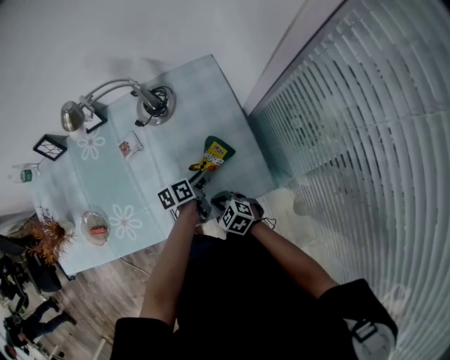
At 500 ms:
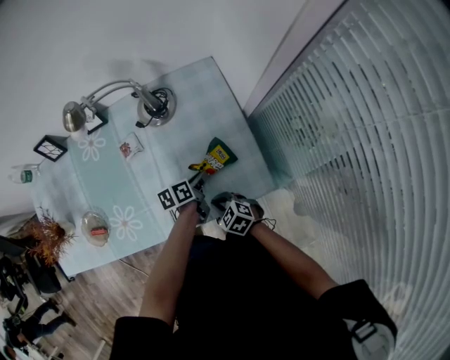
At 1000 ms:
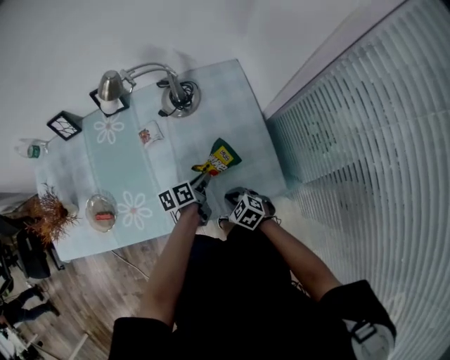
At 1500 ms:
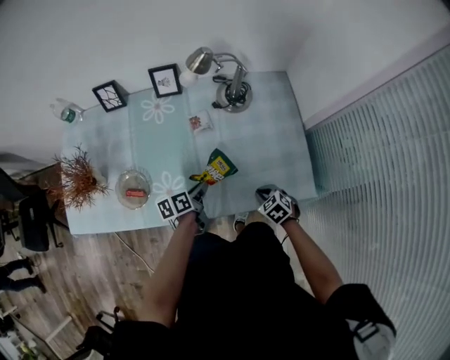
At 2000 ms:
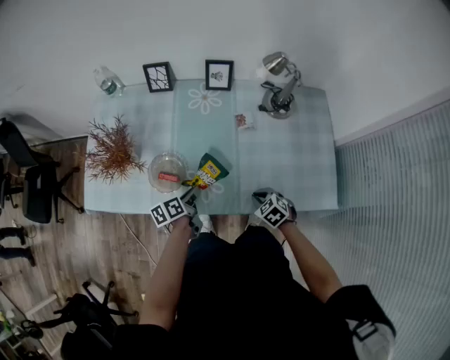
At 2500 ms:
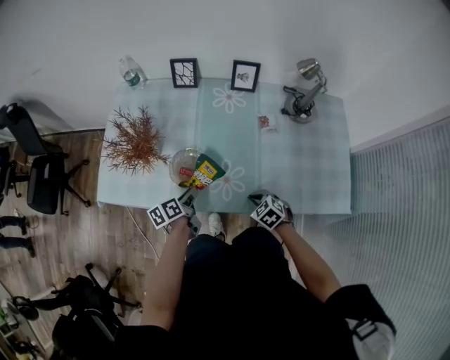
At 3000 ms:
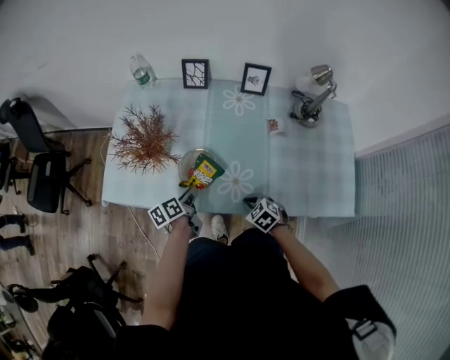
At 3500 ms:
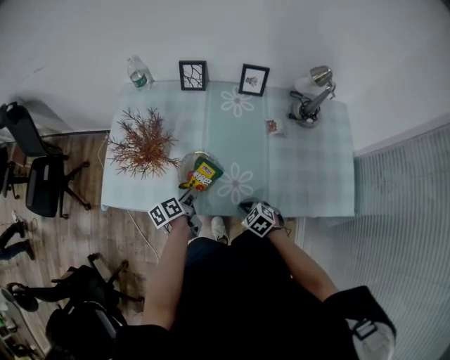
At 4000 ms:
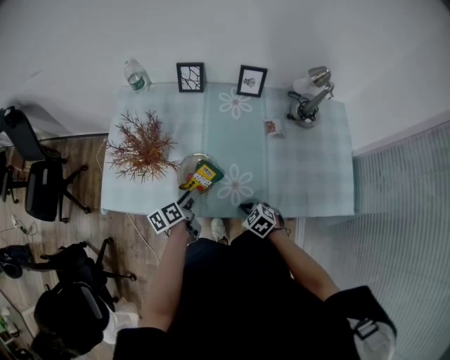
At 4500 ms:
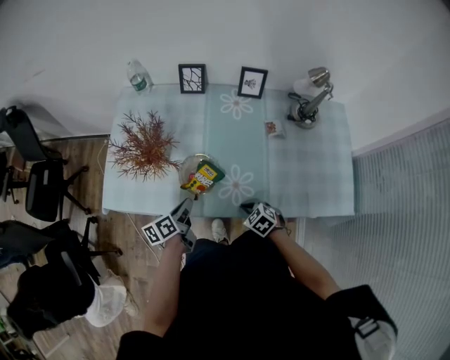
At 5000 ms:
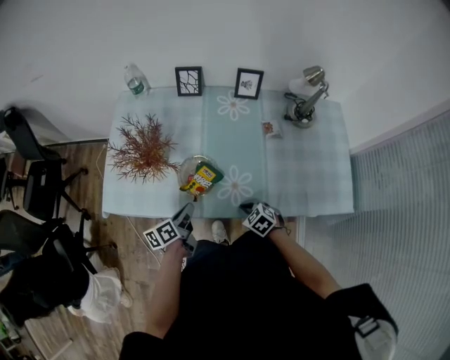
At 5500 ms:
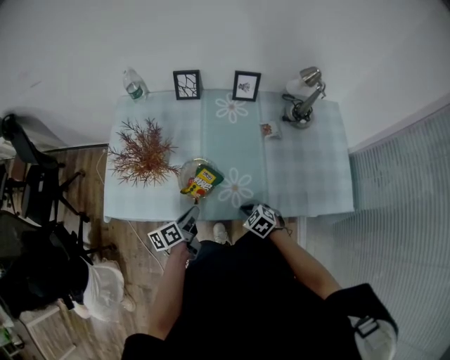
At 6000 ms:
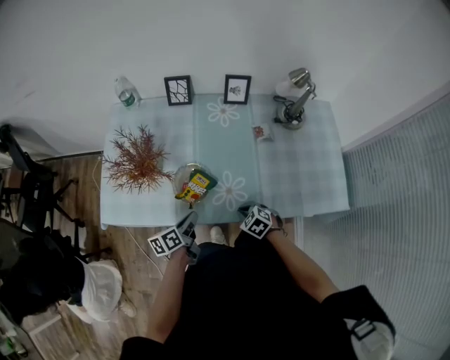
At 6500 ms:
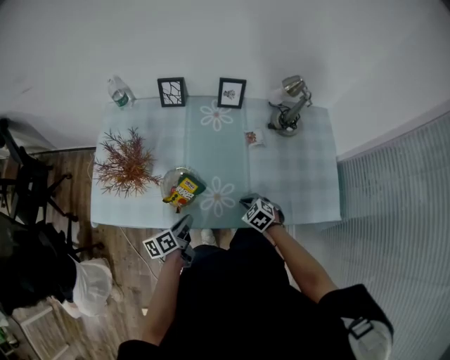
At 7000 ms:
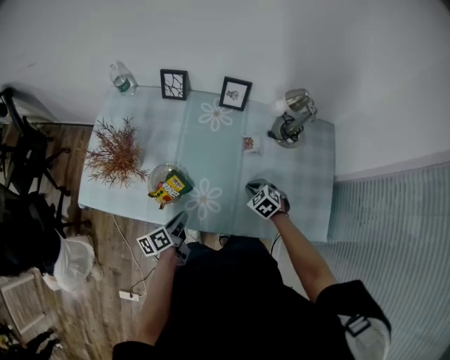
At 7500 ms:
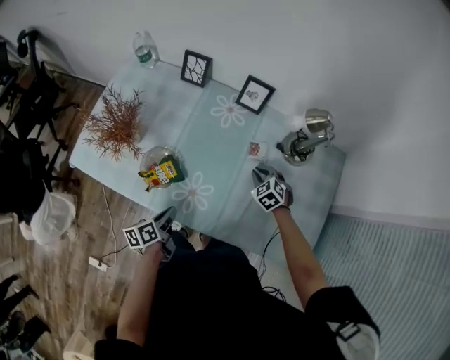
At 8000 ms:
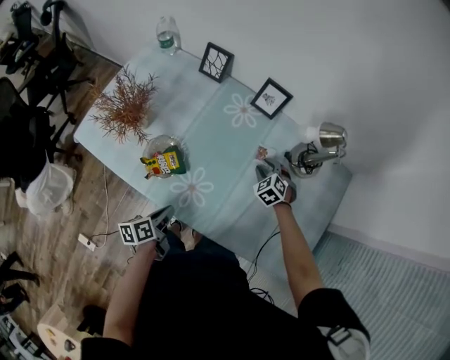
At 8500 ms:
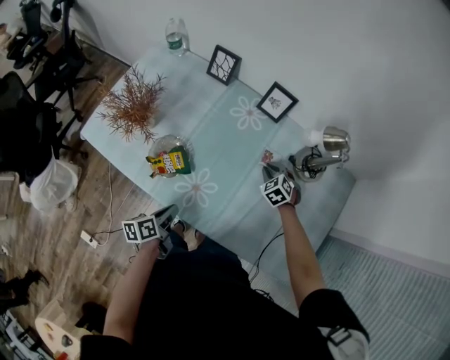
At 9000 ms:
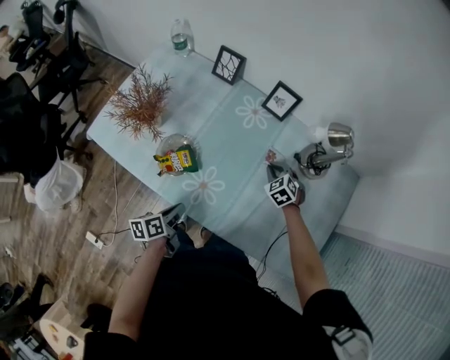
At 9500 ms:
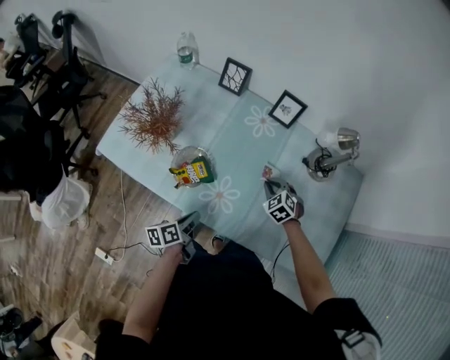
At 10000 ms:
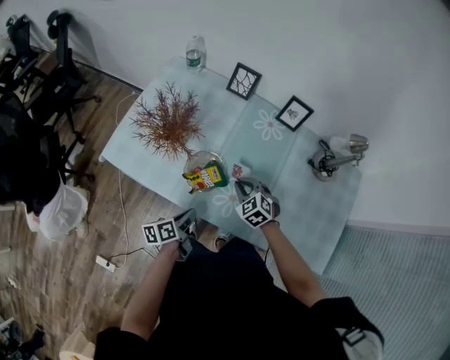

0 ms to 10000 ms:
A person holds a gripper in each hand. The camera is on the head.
0 ms to 2000 ms: The right gripper goes about 15 cm to the left, while the left gripper heads to the left, covering about 40 cm, changes its angle by about 30 degrees, and closes its fingers.
2000 ms to 4000 ms: Both grippers move to the left, approximately 15 cm. The left gripper opens its fingers.
4000 ms to 6000 ms: The left gripper goes approximately 5 cm backward, and closes up.
6000 ms to 8000 ms: The left gripper travels to the right by some 10 cm, and turns by about 20 degrees. Meanwhile the right gripper shifts roughly 30 cm forward and to the right, turns by roughly 30 degrees, and opens.
8000 ms to 10000 ms: The right gripper travels to the left and backward by approximately 25 cm, and closes up. Meanwhile the left gripper heads to the left, covering roughly 10 cm.

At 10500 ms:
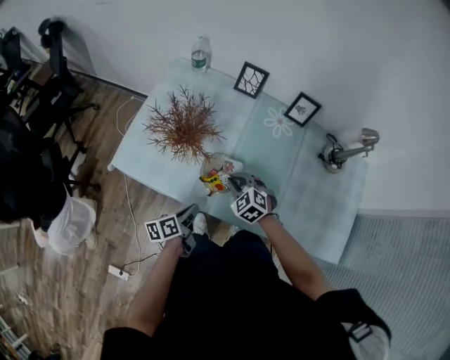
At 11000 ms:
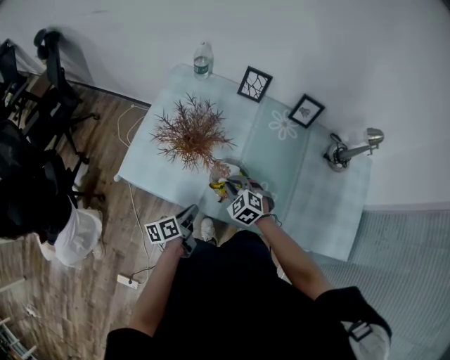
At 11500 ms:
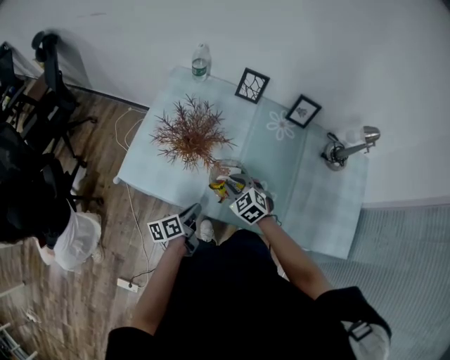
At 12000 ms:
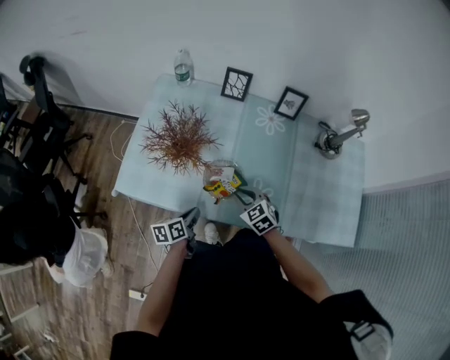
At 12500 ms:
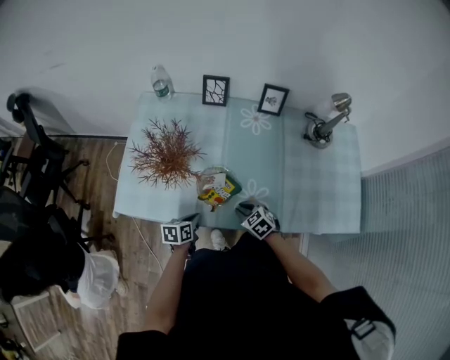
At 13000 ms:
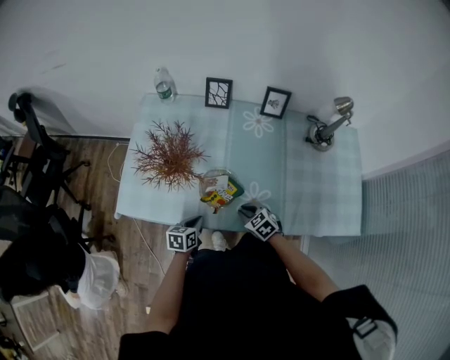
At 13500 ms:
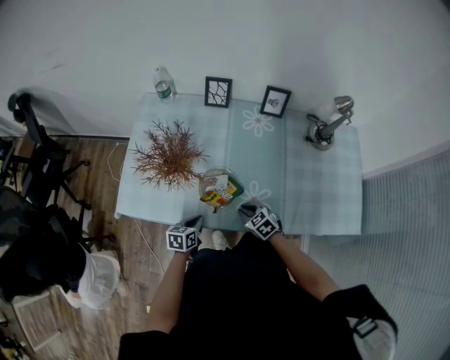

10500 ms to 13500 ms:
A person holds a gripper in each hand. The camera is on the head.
10500 ms to 12000 ms: The right gripper swivels approximately 20 degrees.
12000 ms to 13500 ms: The right gripper moves downward, roughly 5 cm. The left gripper swivels some 30 degrees.

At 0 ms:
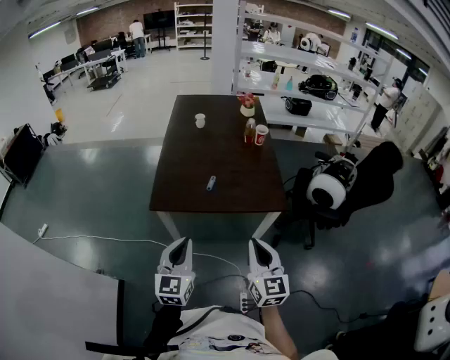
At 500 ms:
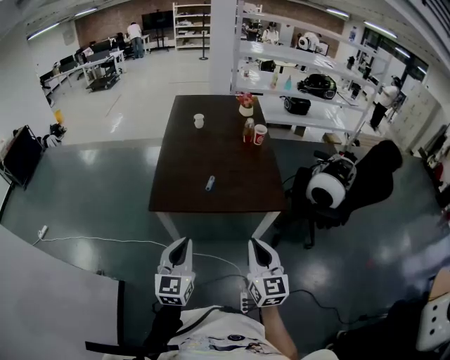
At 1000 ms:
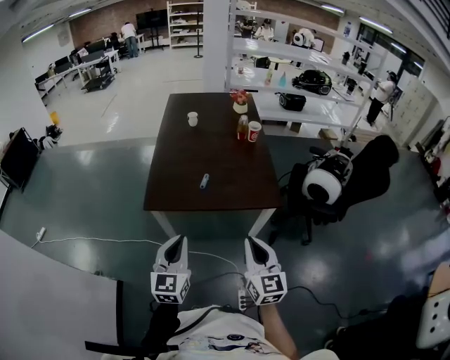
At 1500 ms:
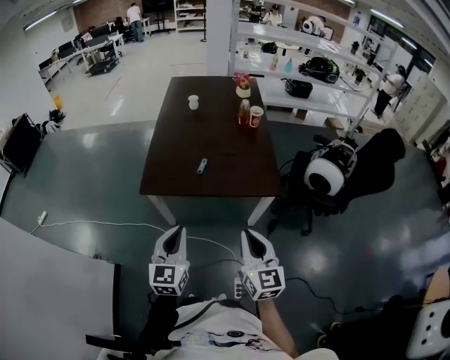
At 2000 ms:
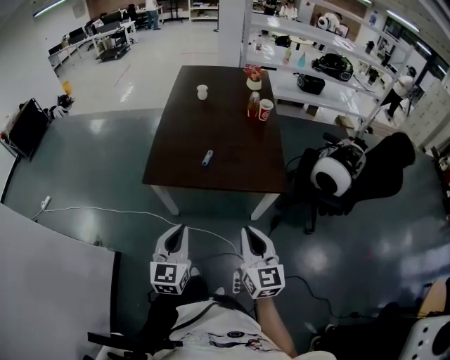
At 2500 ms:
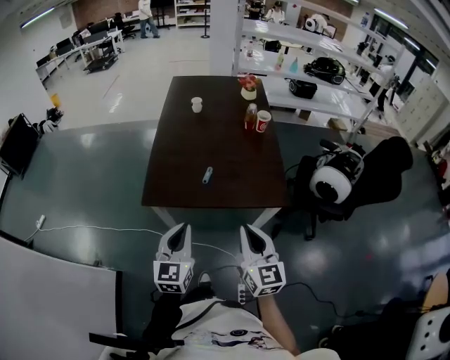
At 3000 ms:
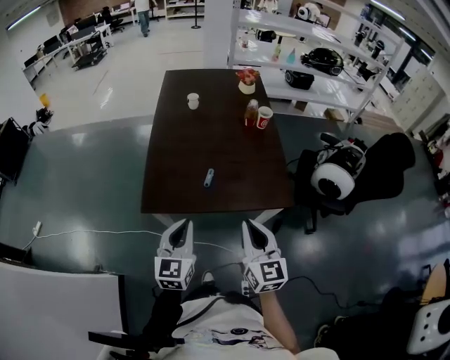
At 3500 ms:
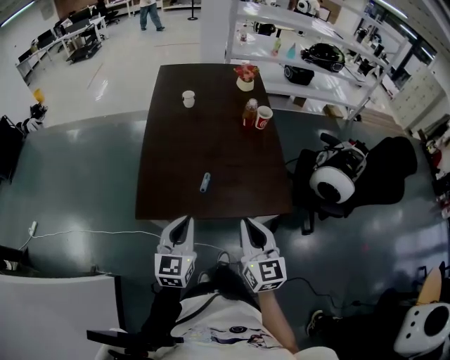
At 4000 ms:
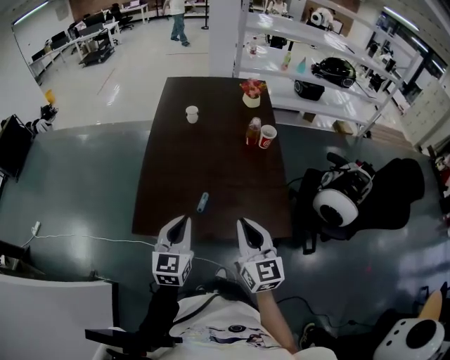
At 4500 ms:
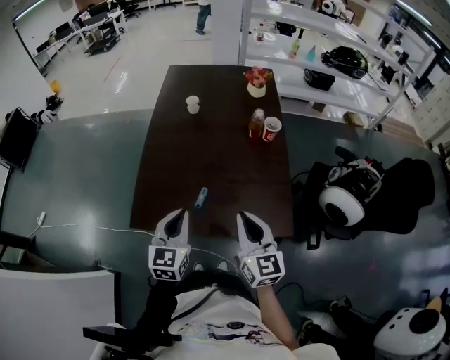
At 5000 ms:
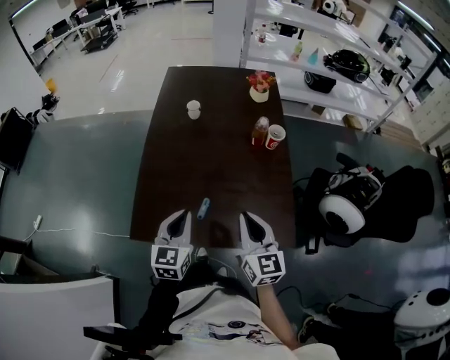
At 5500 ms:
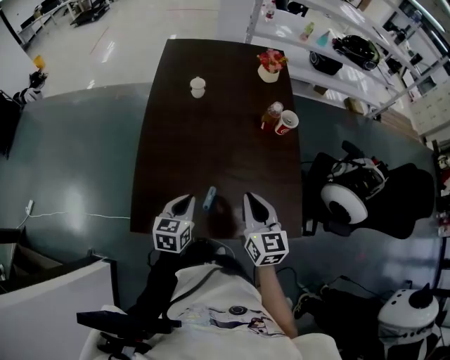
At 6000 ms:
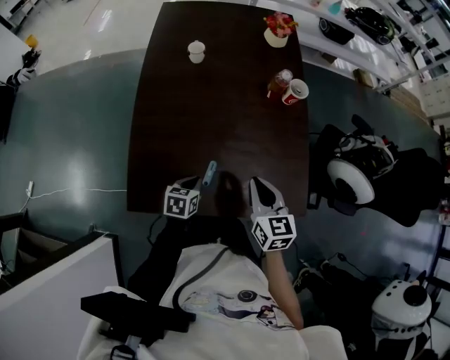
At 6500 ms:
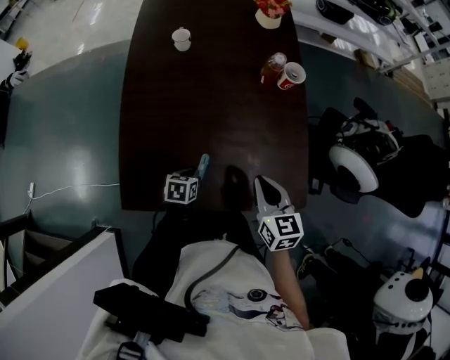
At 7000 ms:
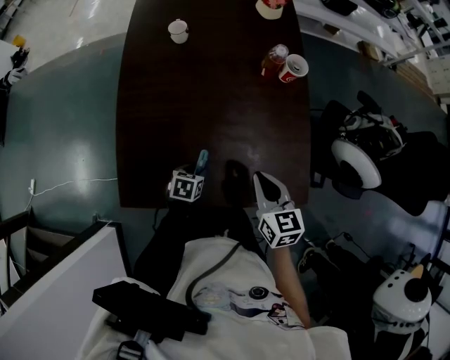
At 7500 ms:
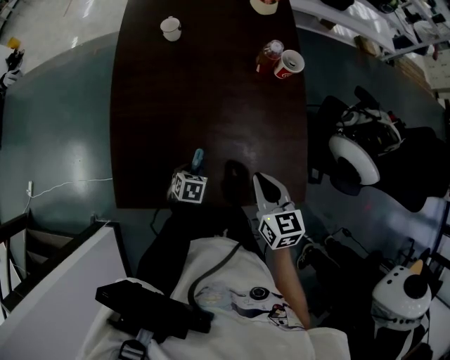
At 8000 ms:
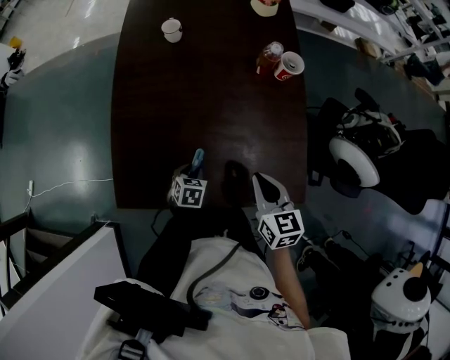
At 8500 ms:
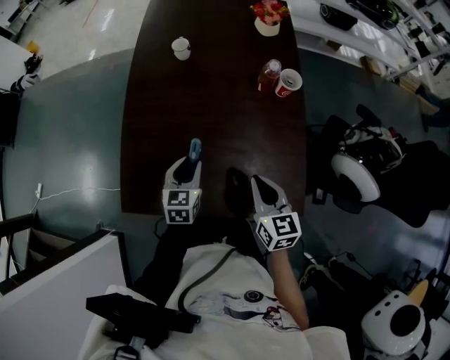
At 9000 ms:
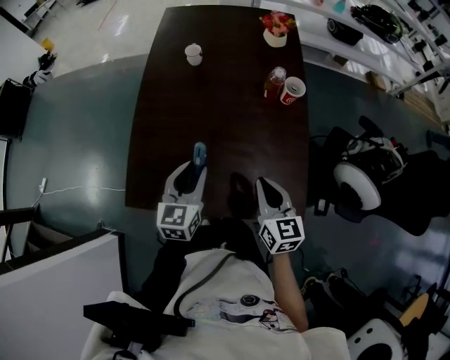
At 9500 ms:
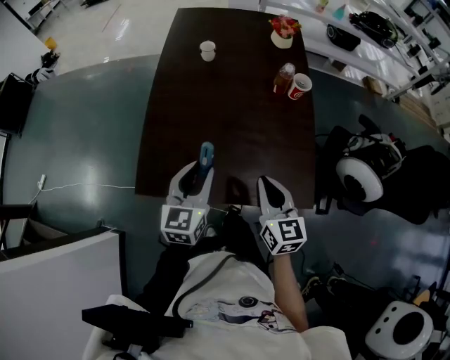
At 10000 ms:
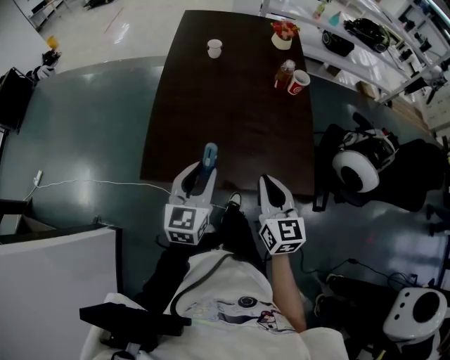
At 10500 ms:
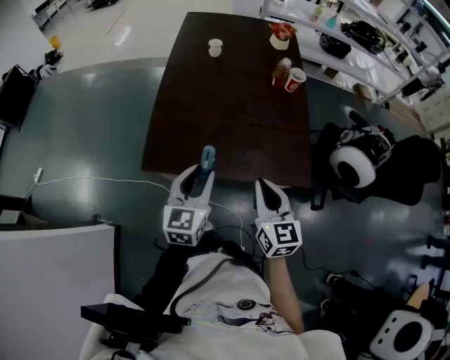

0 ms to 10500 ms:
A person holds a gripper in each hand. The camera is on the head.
0 ms to 2000 ms: The left gripper changes place by approximately 5 cm.
2000 ms to 4000 ms: The two grippers go approximately 25 cm forward.
4000 ms to 6500 ms: The right gripper shifts about 20 cm downward and forward, and rotates some 30 degrees. Meanwhile the left gripper travels downward by roughly 30 cm, and tips its fingers downward by about 40 degrees.
6500 ms to 8500 ms: The left gripper moves upward and forward, approximately 15 cm, turns by approximately 30 degrees, and opens up.
8500 ms to 10500 ms: The left gripper shifts roughly 25 cm backward and upward. Meanwhile the right gripper goes approximately 20 cm backward, to the left and upward.

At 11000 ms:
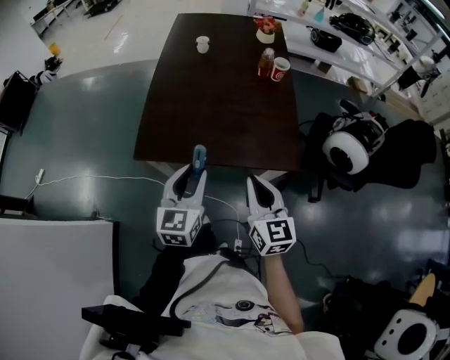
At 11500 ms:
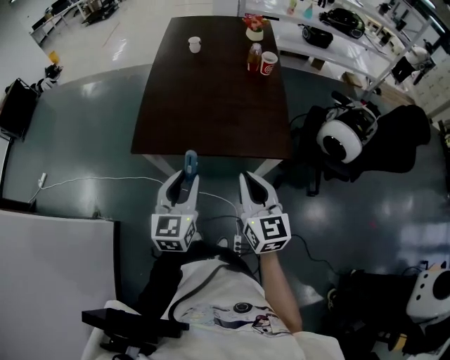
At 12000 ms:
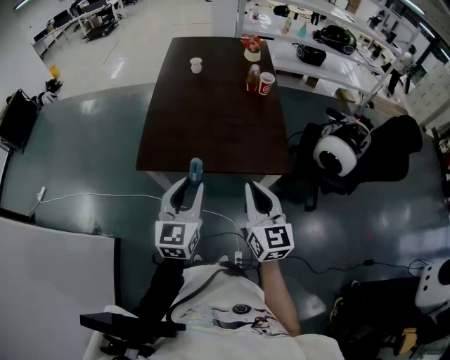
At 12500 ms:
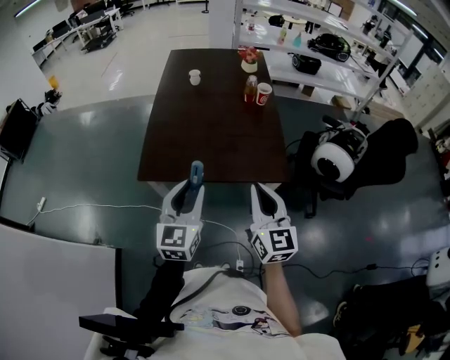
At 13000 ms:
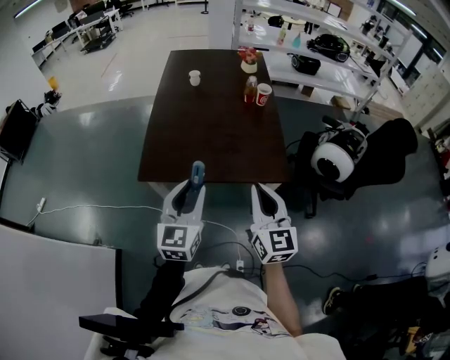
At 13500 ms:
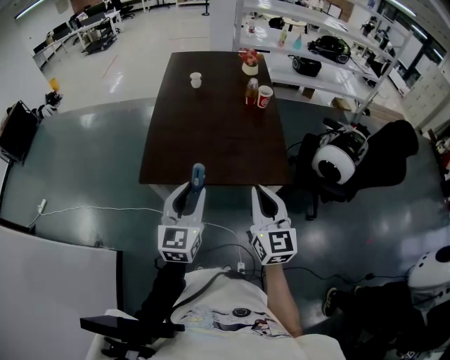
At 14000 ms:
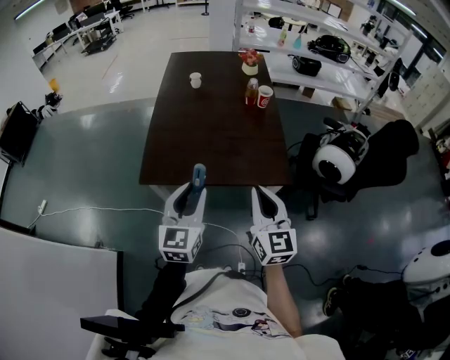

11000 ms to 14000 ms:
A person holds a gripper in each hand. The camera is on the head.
11000 ms to 12500 ms: Both grippers travel together upward, approximately 5 cm.
12500 ms to 14000 ms: Both grippers stay about where they are.
